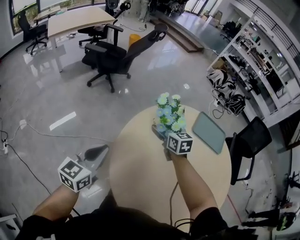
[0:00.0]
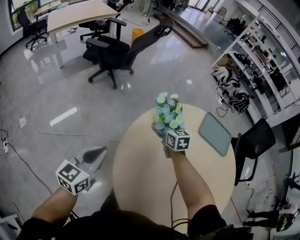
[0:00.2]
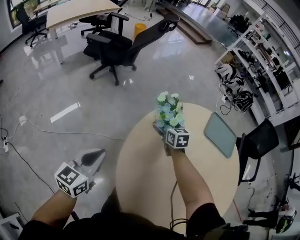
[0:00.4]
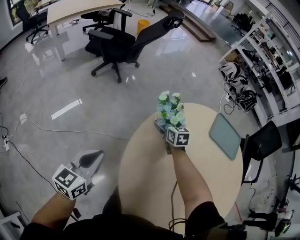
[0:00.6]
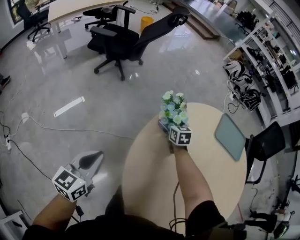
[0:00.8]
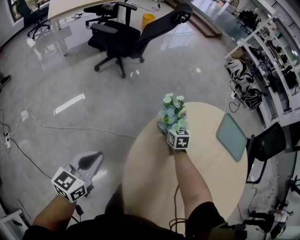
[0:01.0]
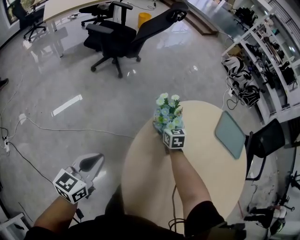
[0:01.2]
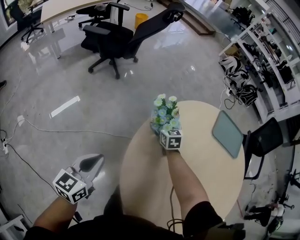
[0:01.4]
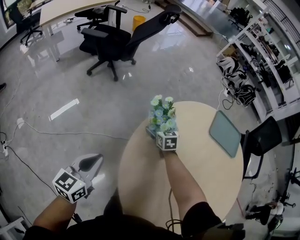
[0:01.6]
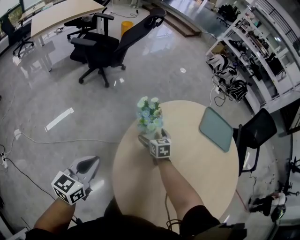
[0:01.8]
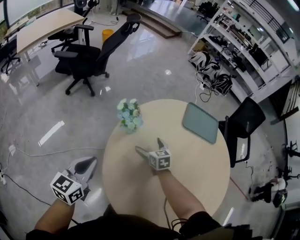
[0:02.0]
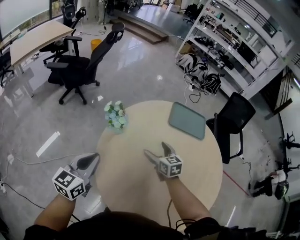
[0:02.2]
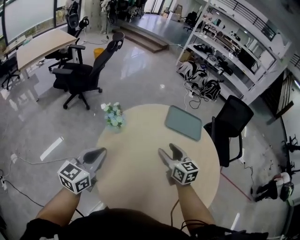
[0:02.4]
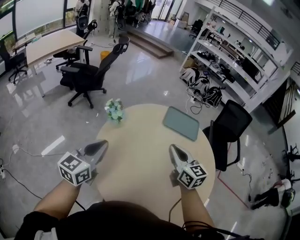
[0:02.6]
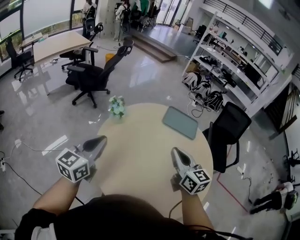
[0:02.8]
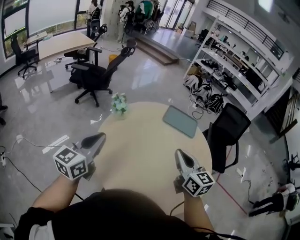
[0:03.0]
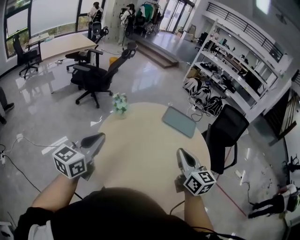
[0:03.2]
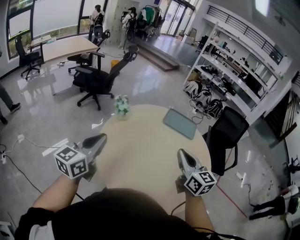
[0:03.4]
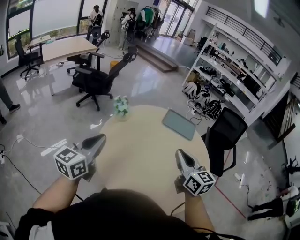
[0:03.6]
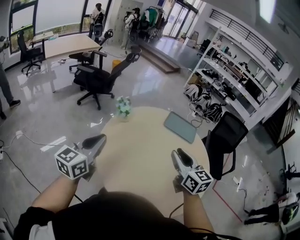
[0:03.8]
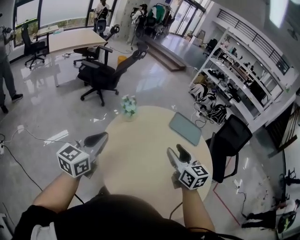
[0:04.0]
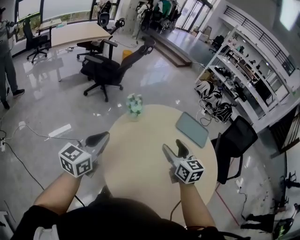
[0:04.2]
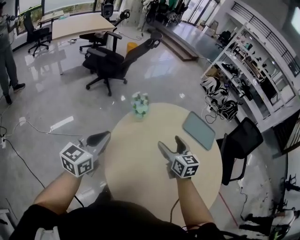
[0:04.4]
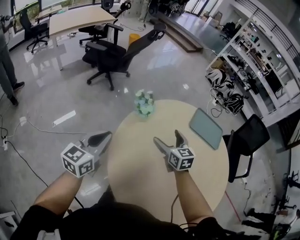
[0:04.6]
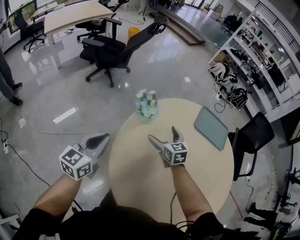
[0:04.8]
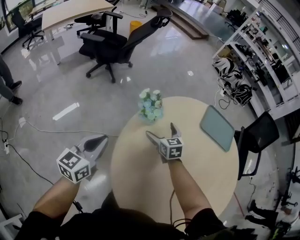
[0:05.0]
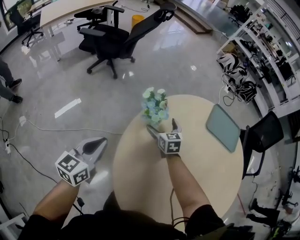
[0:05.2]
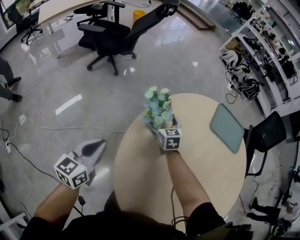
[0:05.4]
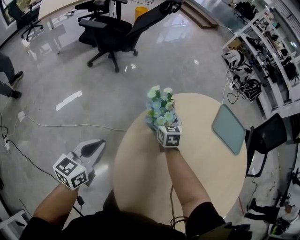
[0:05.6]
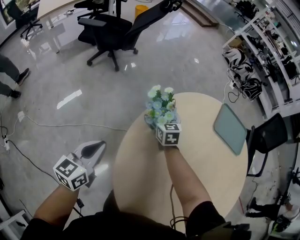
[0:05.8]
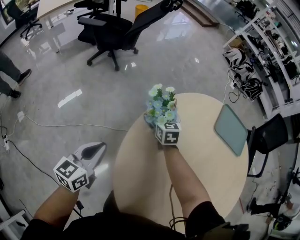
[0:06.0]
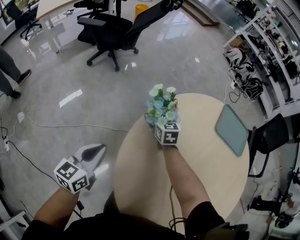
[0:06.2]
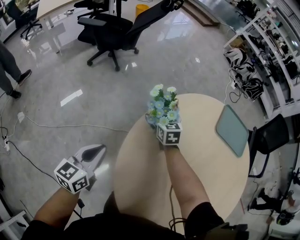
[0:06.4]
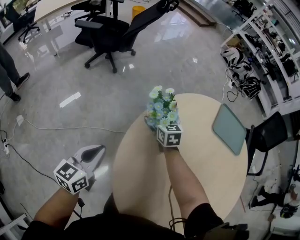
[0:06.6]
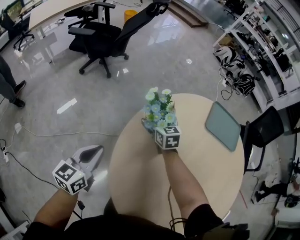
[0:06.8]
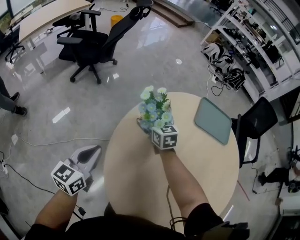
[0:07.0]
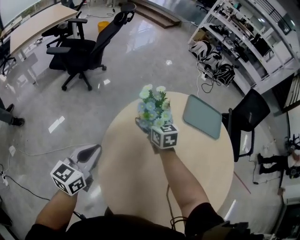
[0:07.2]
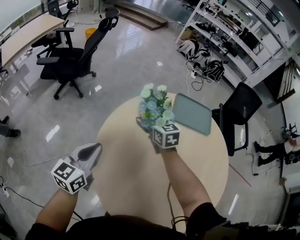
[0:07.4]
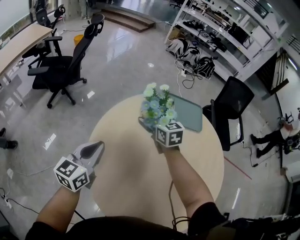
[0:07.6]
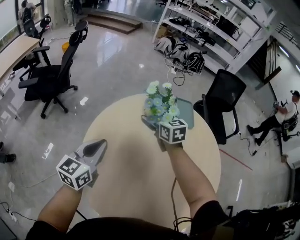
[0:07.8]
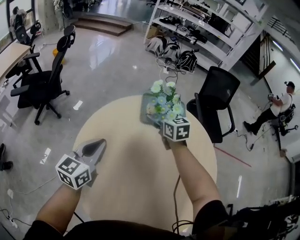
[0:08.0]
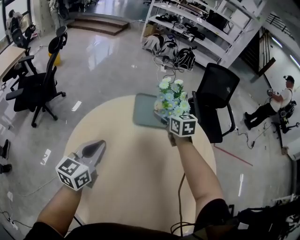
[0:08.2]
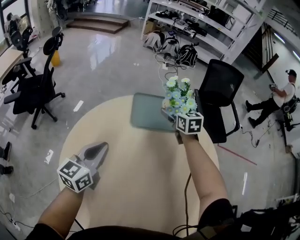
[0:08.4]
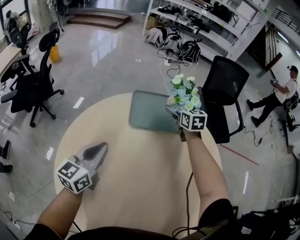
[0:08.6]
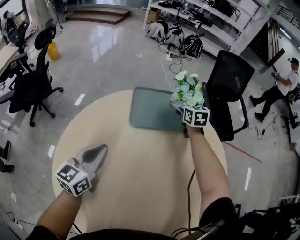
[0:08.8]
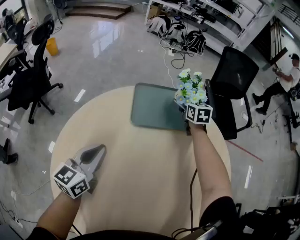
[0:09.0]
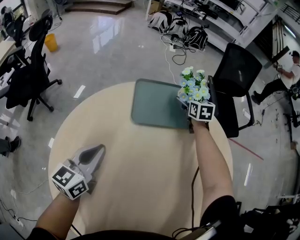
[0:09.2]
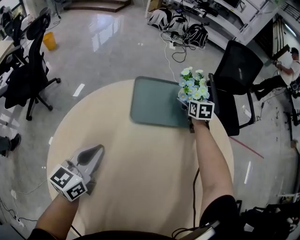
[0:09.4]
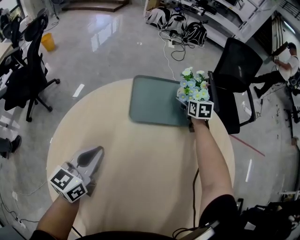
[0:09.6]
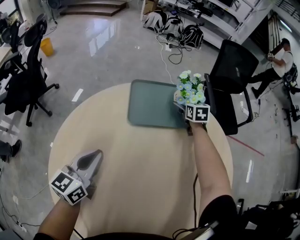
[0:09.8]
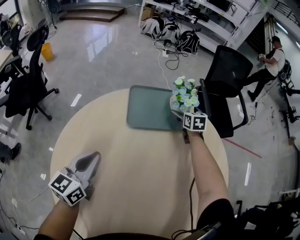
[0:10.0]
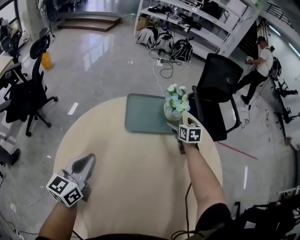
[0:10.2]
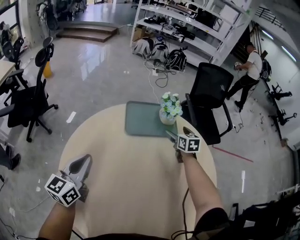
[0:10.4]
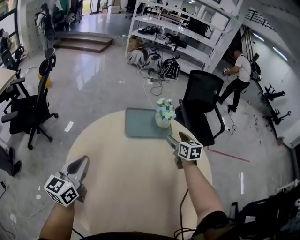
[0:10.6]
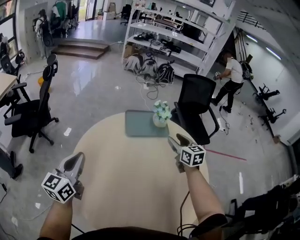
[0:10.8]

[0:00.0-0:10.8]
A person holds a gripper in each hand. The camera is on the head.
0:00.0 to 0:01.6: The left gripper heads downward, to the left and forward, covering roughly 15 cm. Meanwhile the right gripper is displaced downward and forward by approximately 25 cm.
0:01.6 to 0:03.0: The left gripper moves upward, to the right and backward, approximately 35 cm, and rotates roughly 20 degrees. The right gripper shifts about 70 cm upward, backward and to the right, points its fingers approximately 40 degrees further upward, and closes up.
0:03.0 to 0:04.6: The left gripper heads forward, downward and to the left, covering roughly 20 cm; the right gripper moves forward, downward and to the left, roughly 35 cm, and opens up.
0:04.6 to 0:06.2: The right gripper heads forward, downward and to the left, covering approximately 30 cm. Meanwhile the left gripper heads downward and forward, covering roughly 20 cm.
0:06.2 to 0:07.8: The right gripper is displaced to the right and upward by some 35 cm. Meanwhile the left gripper heads to the right, upward and forward, covering roughly 30 cm, and turns by some 30 degrees.
0:07.8 to 0:09.2: The right gripper travels to the right, forward and downward by roughly 40 cm, and rotates approximately 20 degrees; the left gripper travels forward, downward and to the right by about 25 cm.
0:09.2 to 0:10.8: The right gripper is displaced backward and upward by about 40 cm, and closes. The left gripper is displaced upward, backward and to the left by roughly 25 cm.

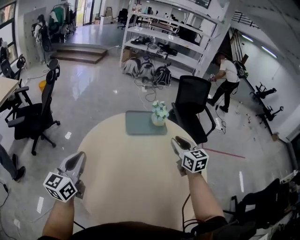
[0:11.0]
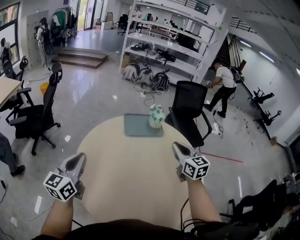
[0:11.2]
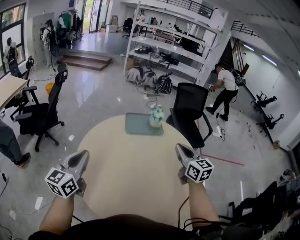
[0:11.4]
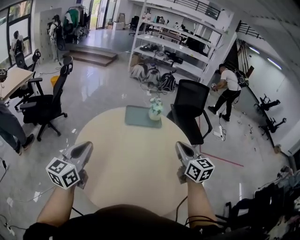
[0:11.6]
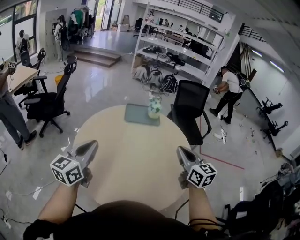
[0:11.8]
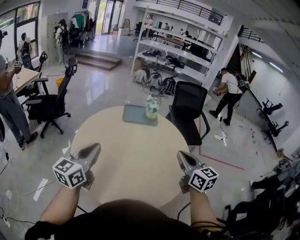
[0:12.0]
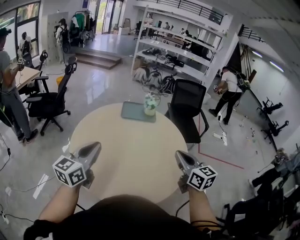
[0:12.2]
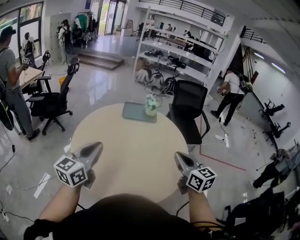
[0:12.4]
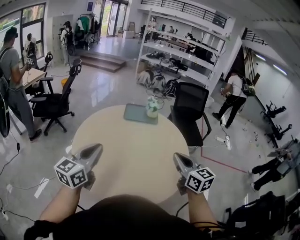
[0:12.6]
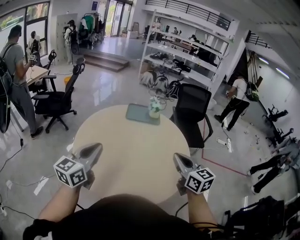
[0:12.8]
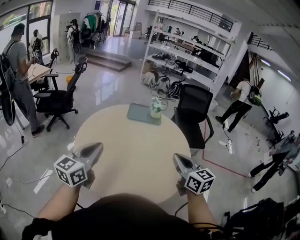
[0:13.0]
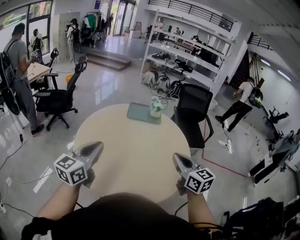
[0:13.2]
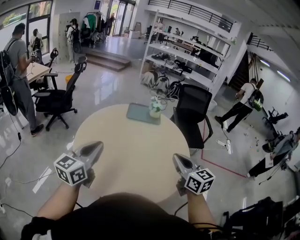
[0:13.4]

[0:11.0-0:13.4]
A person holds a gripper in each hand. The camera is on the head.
0:11.0 to 0:12.2: The left gripper moves backward and to the right, some 30 cm; the right gripper is displaced backward by some 30 cm.
0:12.2 to 0:13.4: The grippers make only small movements.

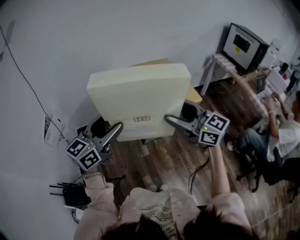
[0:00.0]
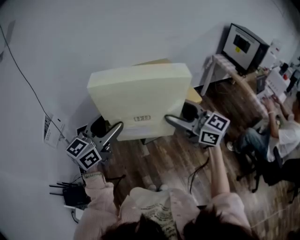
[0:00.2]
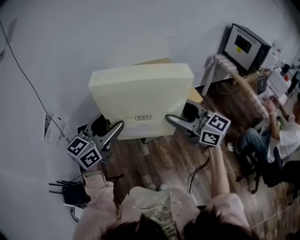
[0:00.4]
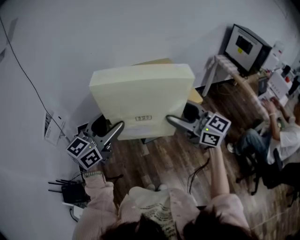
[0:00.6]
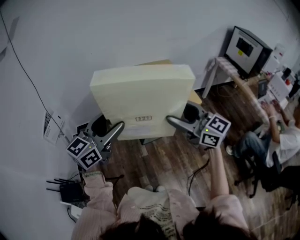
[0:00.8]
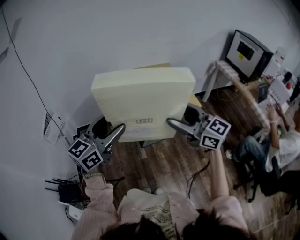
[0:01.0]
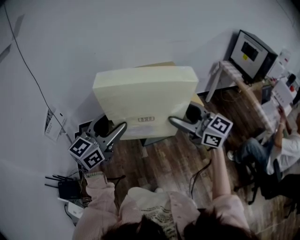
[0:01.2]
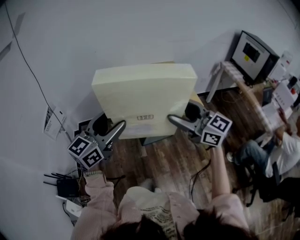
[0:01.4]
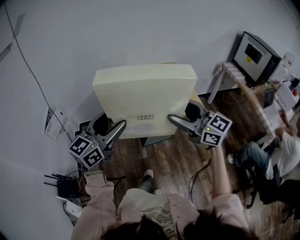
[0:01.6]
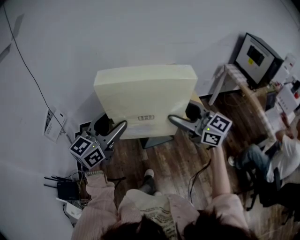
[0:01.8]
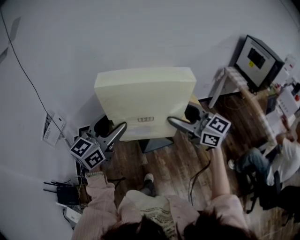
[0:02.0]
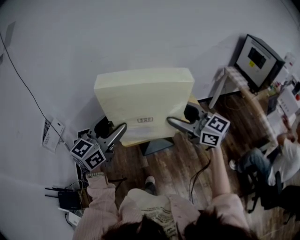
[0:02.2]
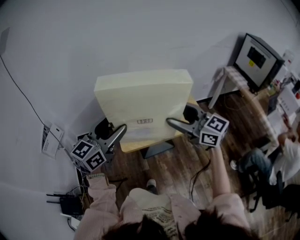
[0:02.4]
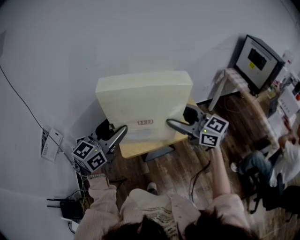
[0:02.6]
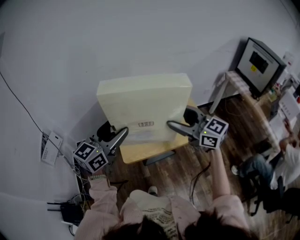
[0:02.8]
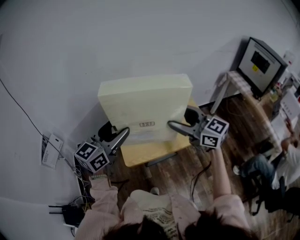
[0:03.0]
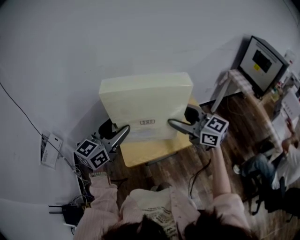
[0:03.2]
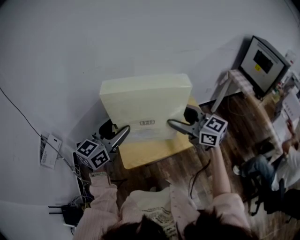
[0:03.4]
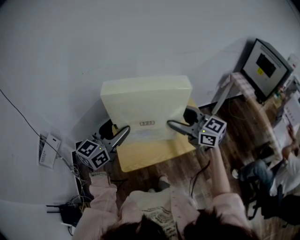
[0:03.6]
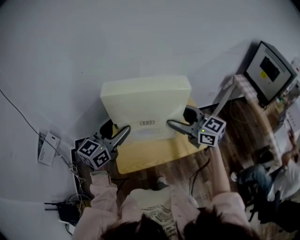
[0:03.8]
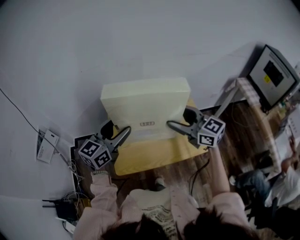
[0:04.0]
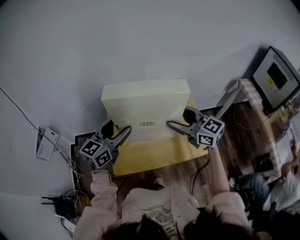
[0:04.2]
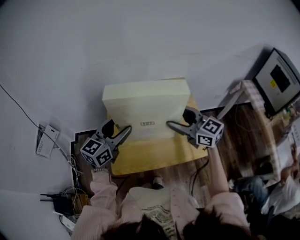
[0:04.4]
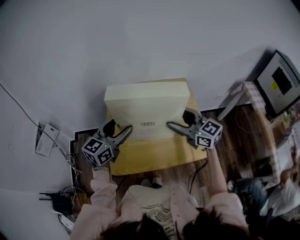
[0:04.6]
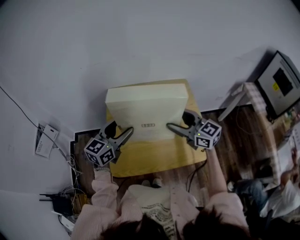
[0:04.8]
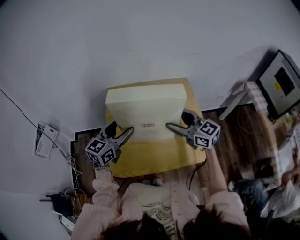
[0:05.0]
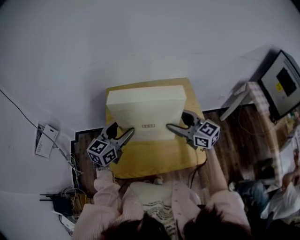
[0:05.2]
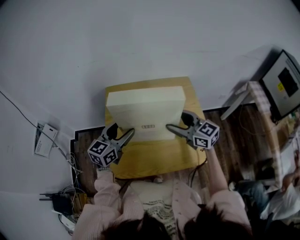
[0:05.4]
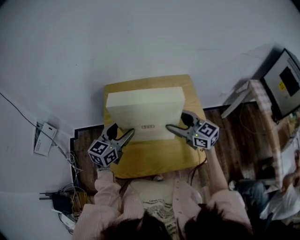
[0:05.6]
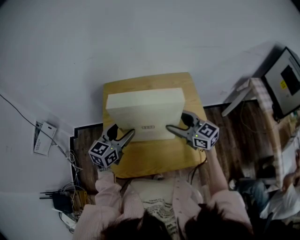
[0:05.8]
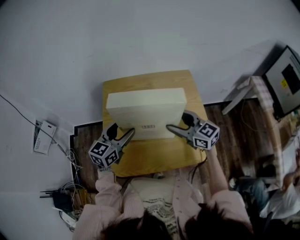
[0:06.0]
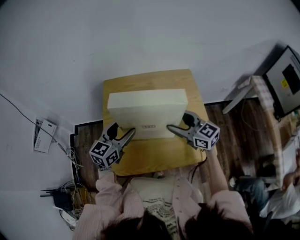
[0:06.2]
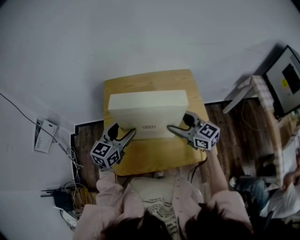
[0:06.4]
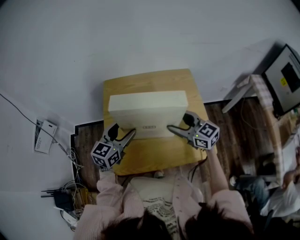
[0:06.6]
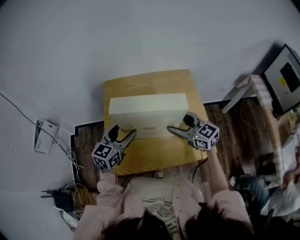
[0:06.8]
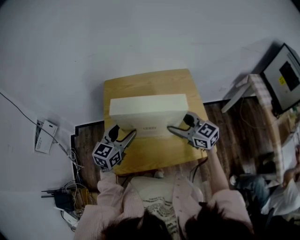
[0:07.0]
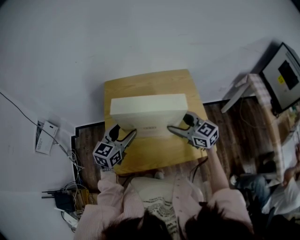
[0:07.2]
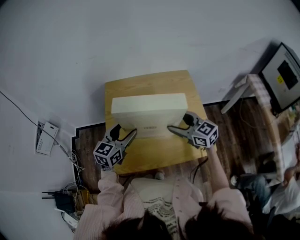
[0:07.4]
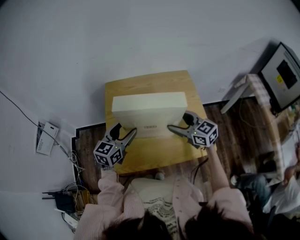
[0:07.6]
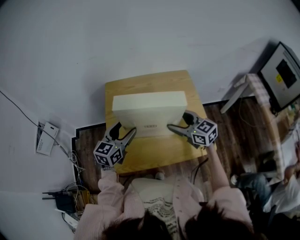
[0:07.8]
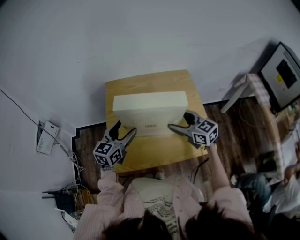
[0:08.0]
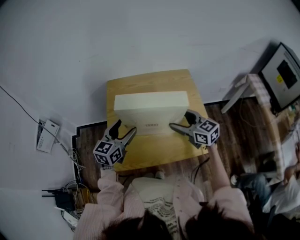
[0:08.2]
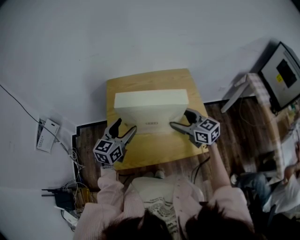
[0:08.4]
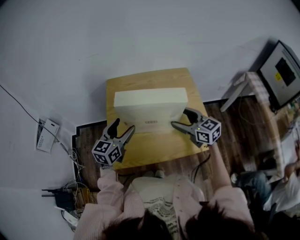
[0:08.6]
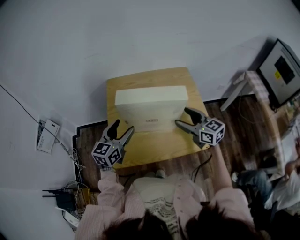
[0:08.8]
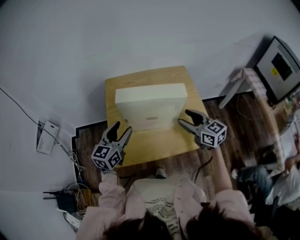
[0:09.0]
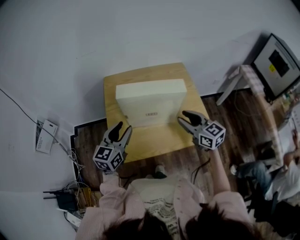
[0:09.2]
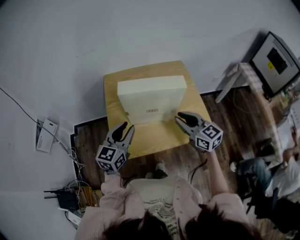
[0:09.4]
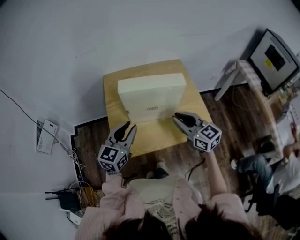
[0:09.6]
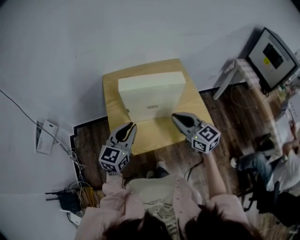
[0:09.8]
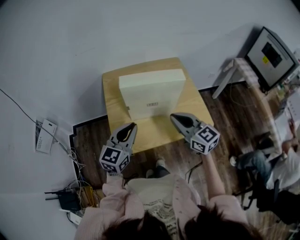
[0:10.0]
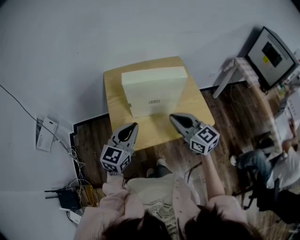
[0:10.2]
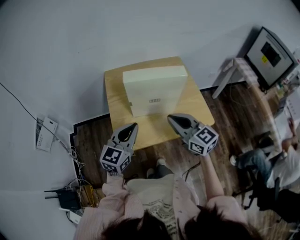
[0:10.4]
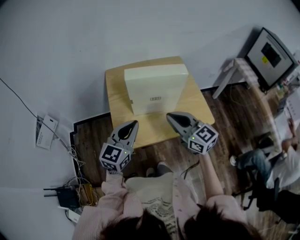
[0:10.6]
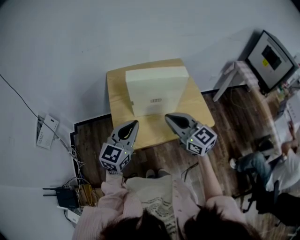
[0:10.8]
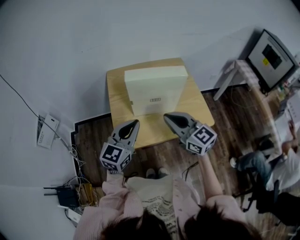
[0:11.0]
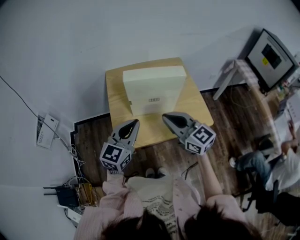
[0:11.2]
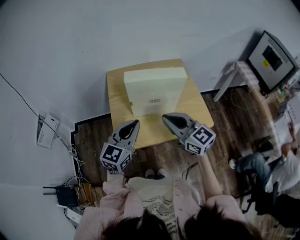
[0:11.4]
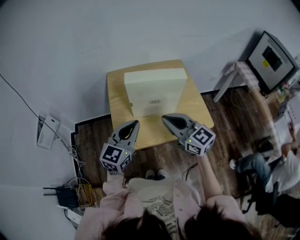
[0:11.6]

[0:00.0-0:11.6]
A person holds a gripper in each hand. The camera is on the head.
0:00.0 to 0:01.4: The grippers move only a little.
0:01.4 to 0:02.8: The two grippers go roughly 20 cm forward.
0:02.8 to 0:04.4: The left gripper heads forward, downward and to the right, covering roughly 15 cm. Meanwhile the right gripper shifts roughly 15 cm forward and downward.
0:04.4 to 0:05.8: The grippers both shift downward by about 10 cm.
0:05.8 to 0:08.8: The grippers move only a little.
0:08.8 to 0:10.2: The right gripper shifts roughly 15 cm backward, to the left and upward, and closes up. Meanwhile the left gripper heads backward, covering about 10 cm, and closes.
0:10.2 to 0:11.6: The right gripper changes place by some 5 cm.
